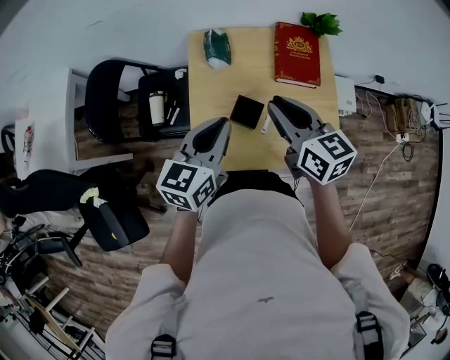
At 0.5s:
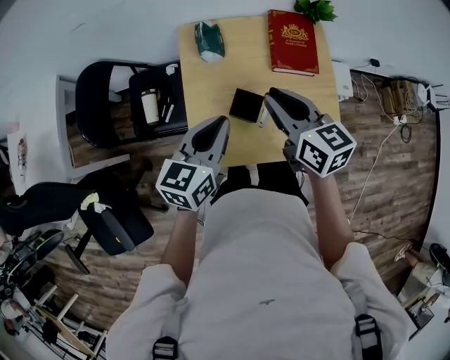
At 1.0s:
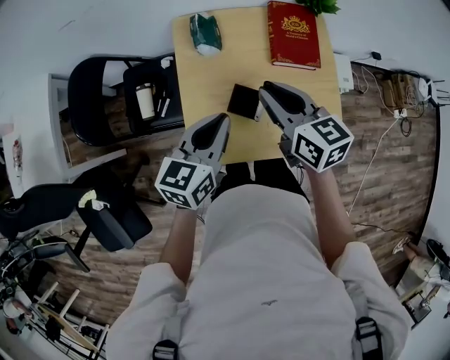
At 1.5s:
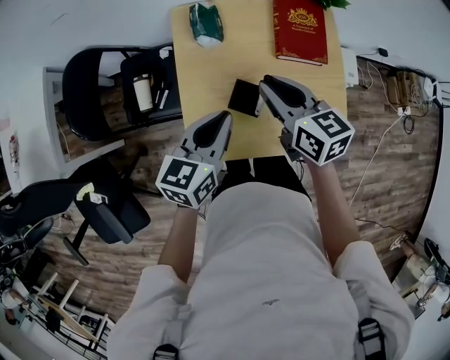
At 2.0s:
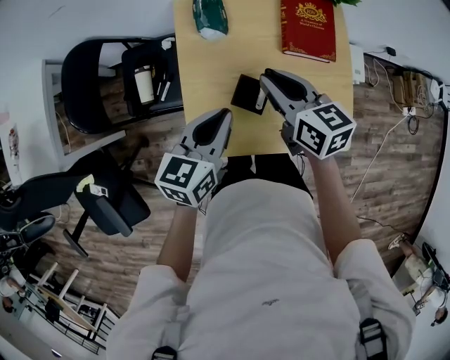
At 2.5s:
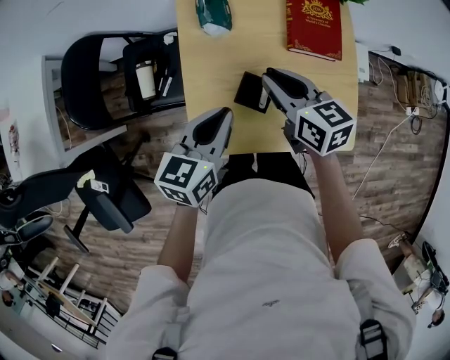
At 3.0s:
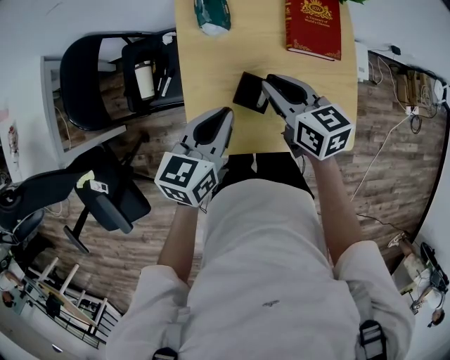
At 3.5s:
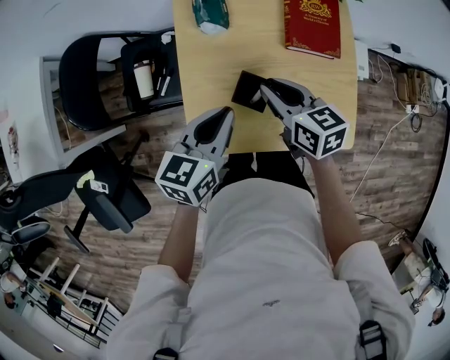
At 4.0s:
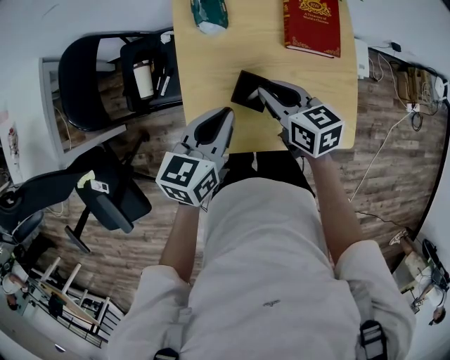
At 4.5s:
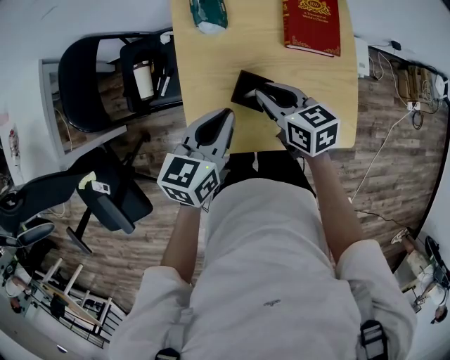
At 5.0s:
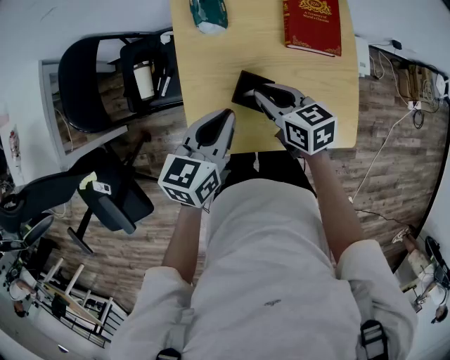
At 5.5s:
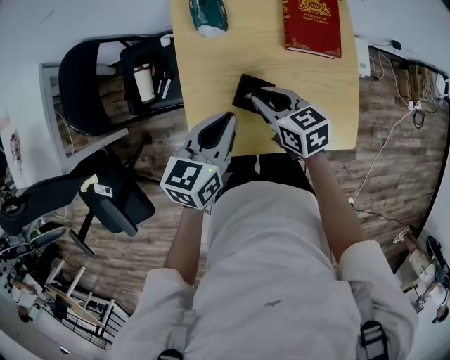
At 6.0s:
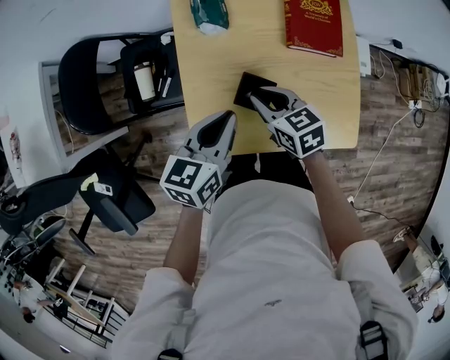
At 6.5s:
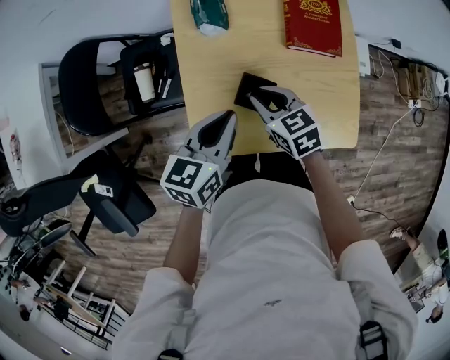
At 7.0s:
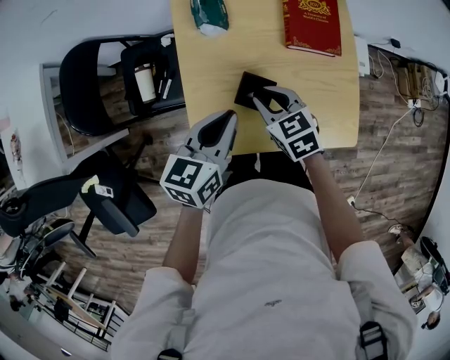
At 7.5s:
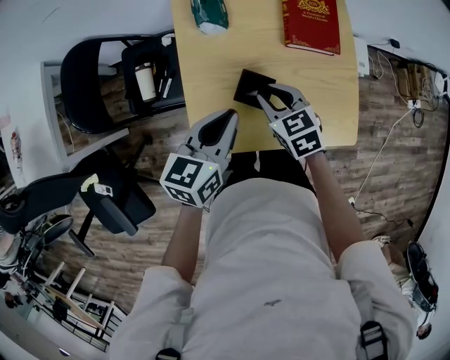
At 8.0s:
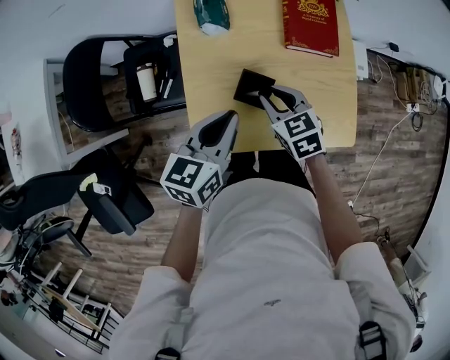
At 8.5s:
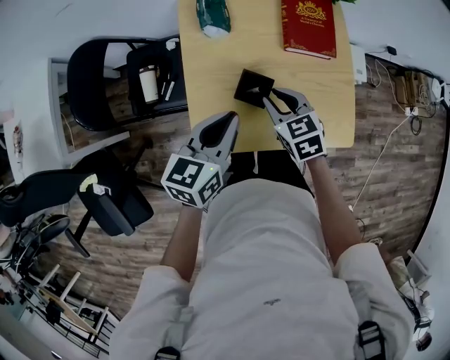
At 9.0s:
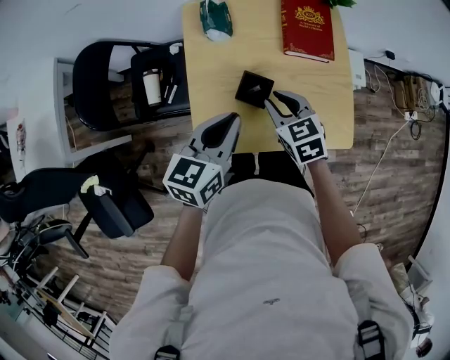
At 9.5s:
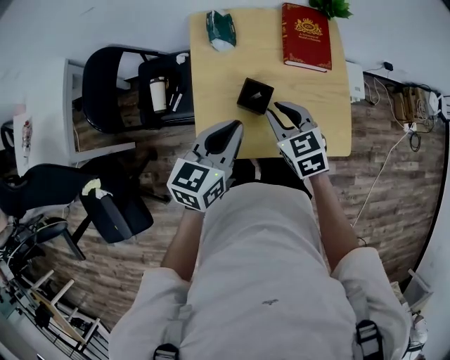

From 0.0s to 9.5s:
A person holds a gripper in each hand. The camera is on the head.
From 0.0s to 2.0s: The right gripper moves downward and forward, roughly 10 cm. The left gripper shifts roughly 10 cm downward.
From 2.0s to 4.0s: The right gripper shifts roughly 5 cm downward.
From 4.0s to 5.5s: The grippers make only small movements.
From 5.5s to 7.5s: There are only small adjustments of the grippers.
From 7.5s to 9.5s: The right gripper moves upward, about 5 cm. Meanwhile the left gripper ends up approximately 5 cm from where it was.

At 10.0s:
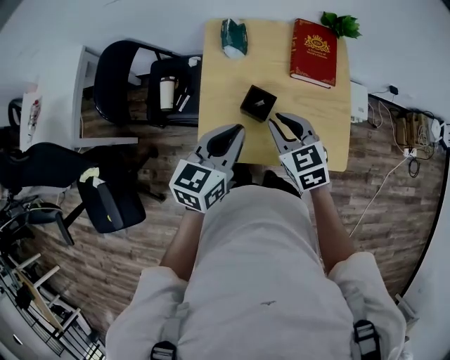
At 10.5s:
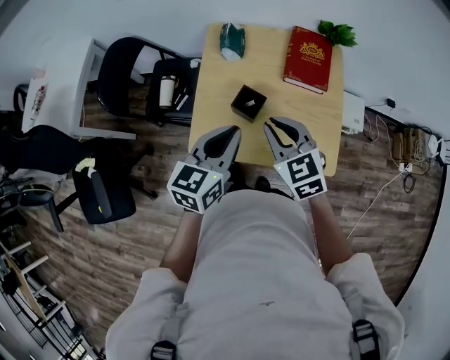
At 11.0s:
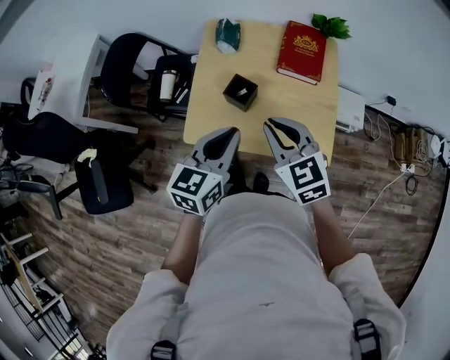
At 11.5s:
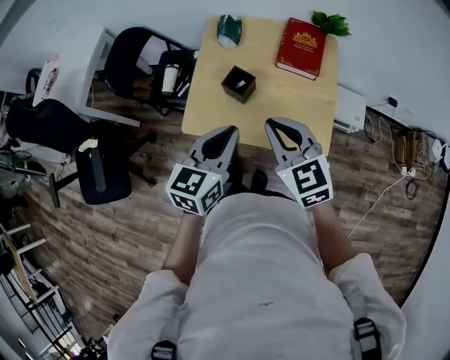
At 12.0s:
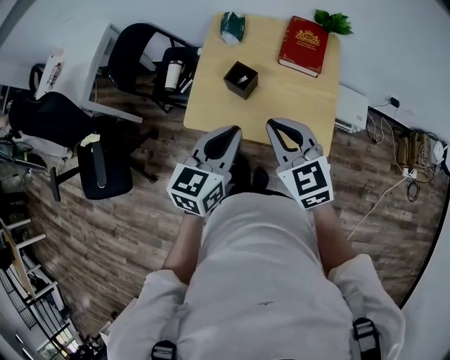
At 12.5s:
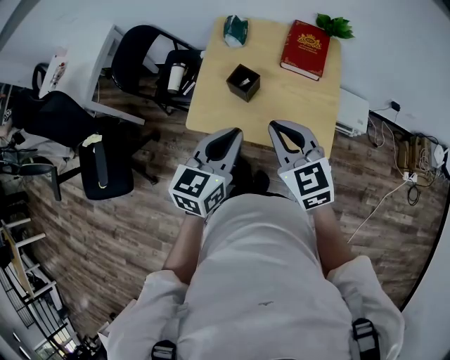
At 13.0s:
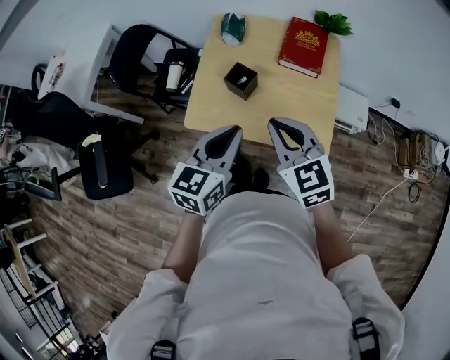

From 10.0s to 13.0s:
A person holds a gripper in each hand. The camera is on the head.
From 10.0s to 11.5s: The left gripper is displaced backward and to the right by some 15 cm. The right gripper shifts roughly 15 cm backward, upward and to the right.
From 11.5s to 13.0s: The grippers move only a little.

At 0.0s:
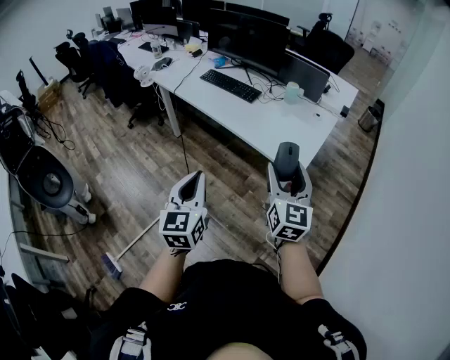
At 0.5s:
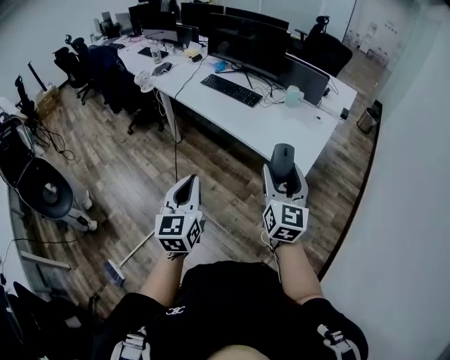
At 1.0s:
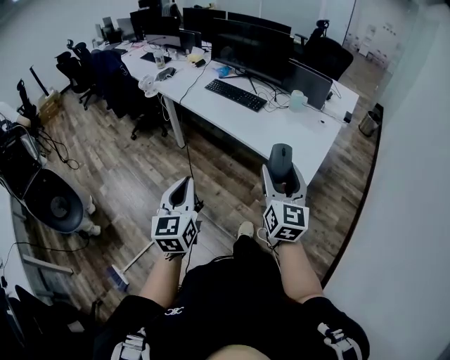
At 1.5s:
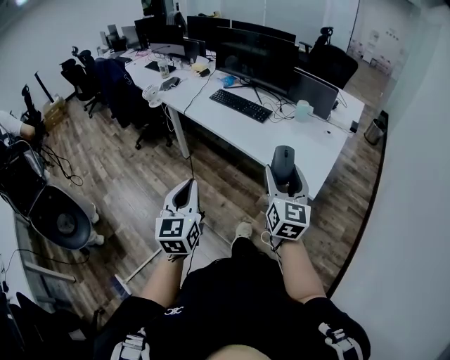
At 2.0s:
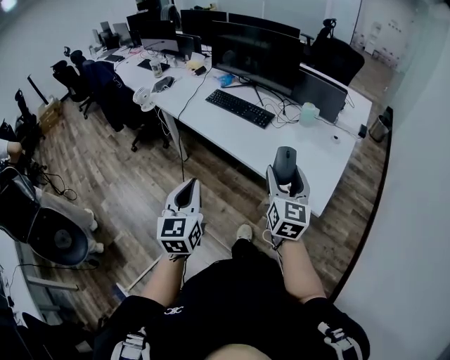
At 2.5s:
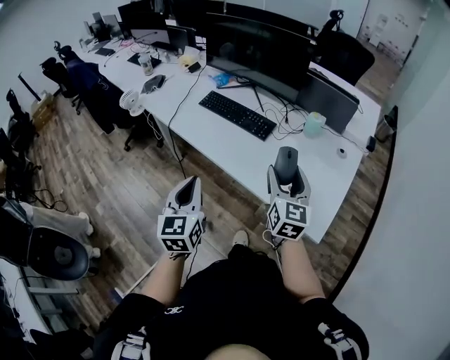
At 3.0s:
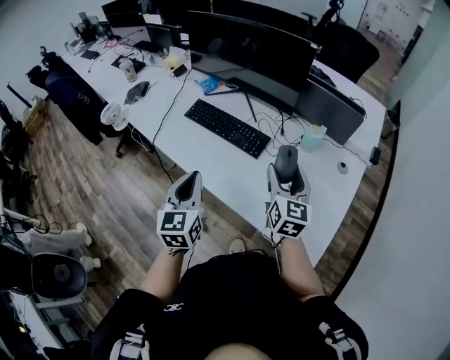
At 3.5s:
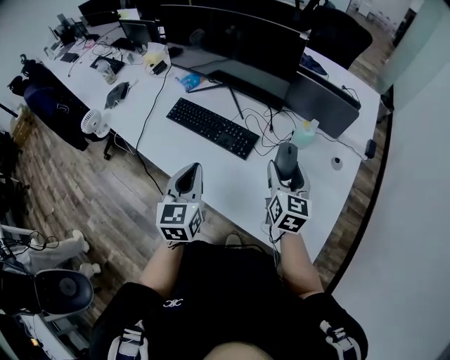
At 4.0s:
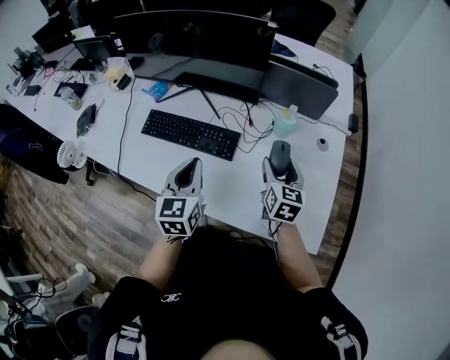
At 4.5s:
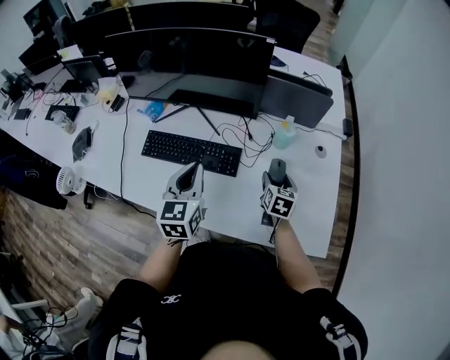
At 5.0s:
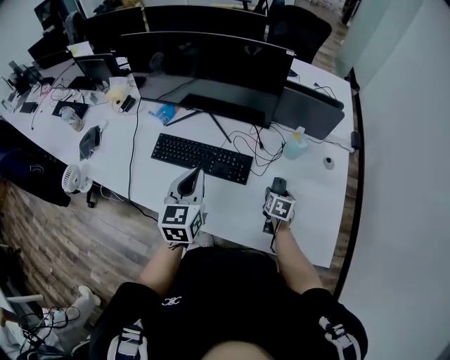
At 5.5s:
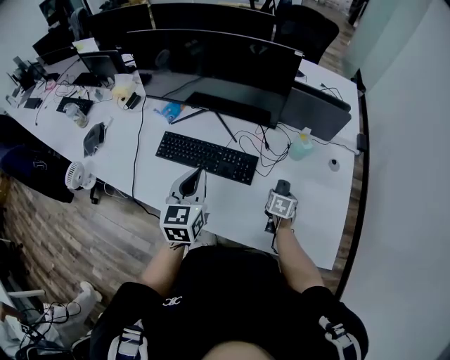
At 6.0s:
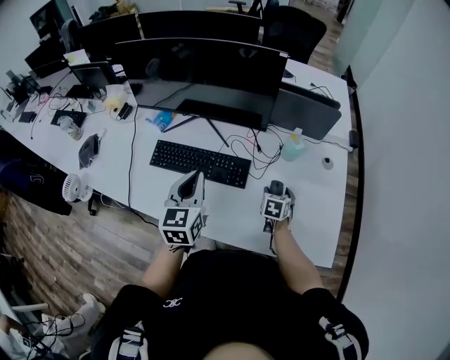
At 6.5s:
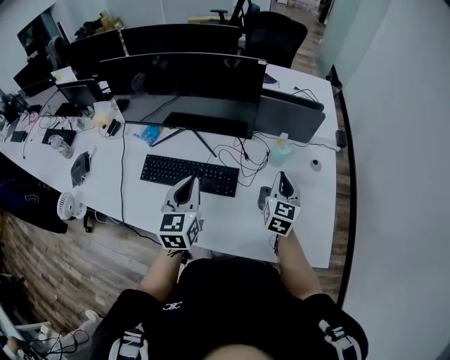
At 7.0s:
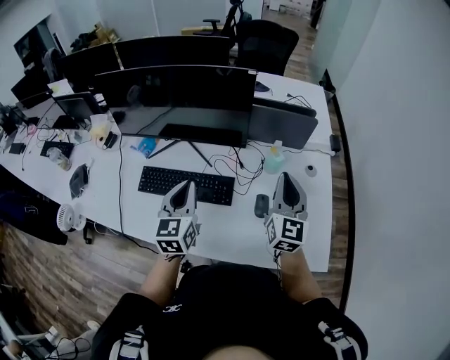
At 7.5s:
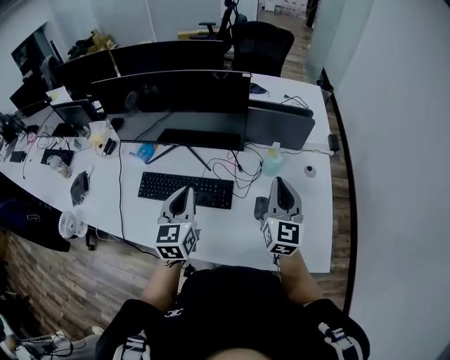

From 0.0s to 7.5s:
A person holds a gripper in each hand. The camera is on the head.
From 0.0s to 2.0s: The left gripper goes roughly 20 cm forward and to the left; the right gripper shifts some 20 cm forward.
From 2.0s to 4.0s: The pair of grippers is taken forward, roughly 50 cm. The left gripper swivels approximately 20 degrees. Meanwhile the right gripper turns by about 30 degrees.
From 4.0s to 5.5s: The left gripper heads to the left, covering roughly 10 cm. The right gripper is displaced downward by about 20 cm, and angles its fingers downward, by some 30 degrees.
From 5.5s to 7.5s: The right gripper moves upward, about 35 cm, points its fingers about 50 degrees further upward, and closes up. The left gripper ends up about 5 cm from where it was.

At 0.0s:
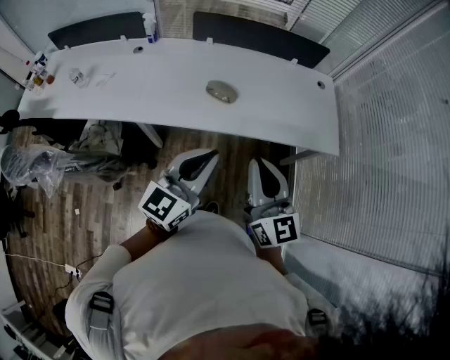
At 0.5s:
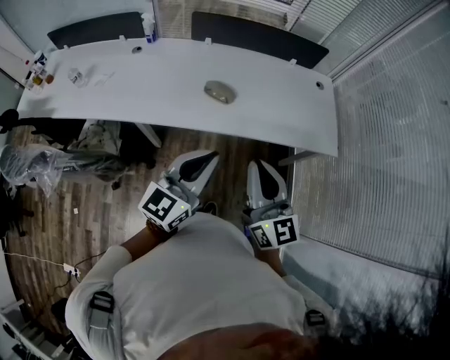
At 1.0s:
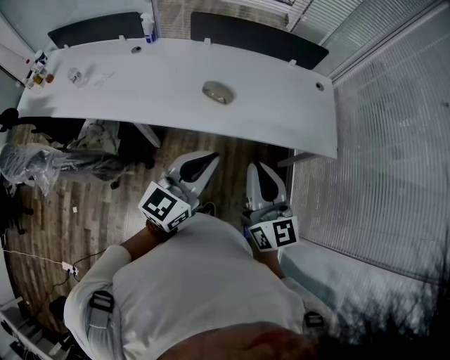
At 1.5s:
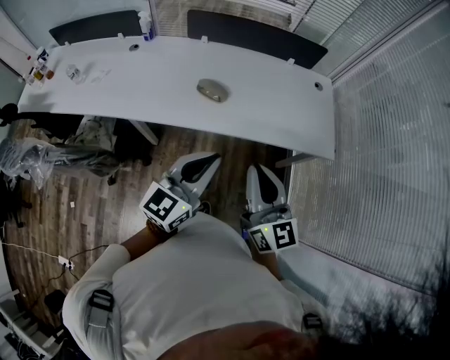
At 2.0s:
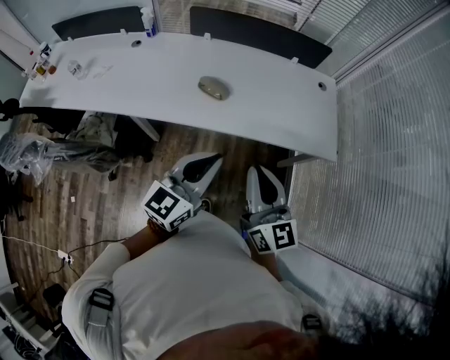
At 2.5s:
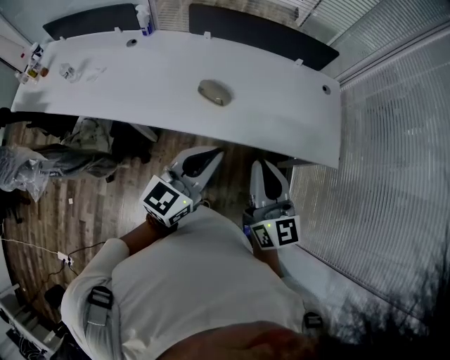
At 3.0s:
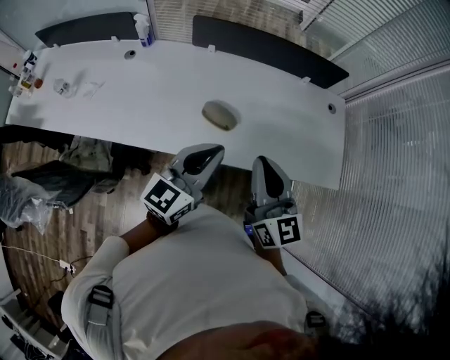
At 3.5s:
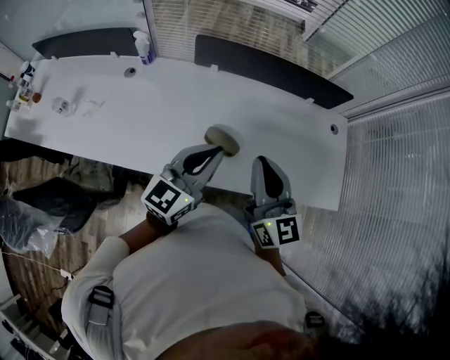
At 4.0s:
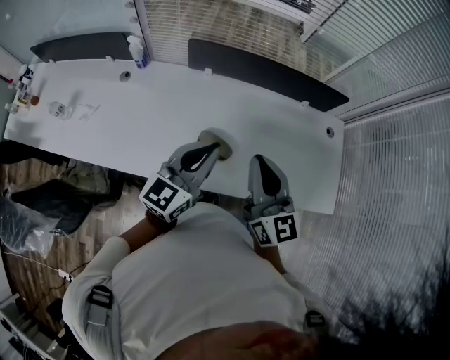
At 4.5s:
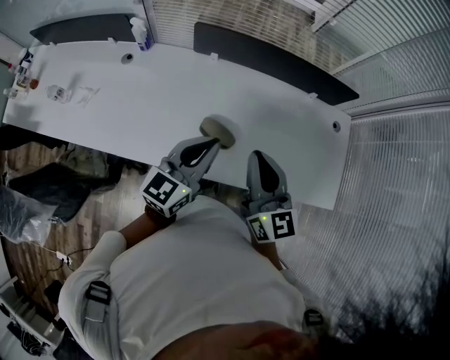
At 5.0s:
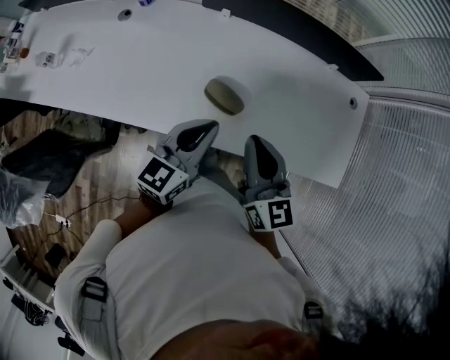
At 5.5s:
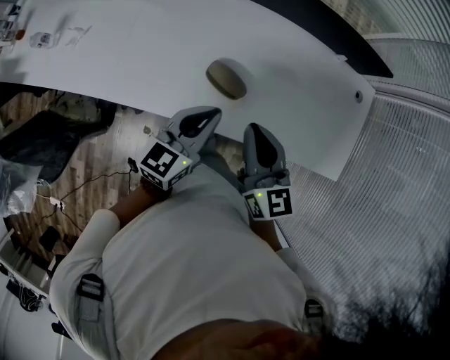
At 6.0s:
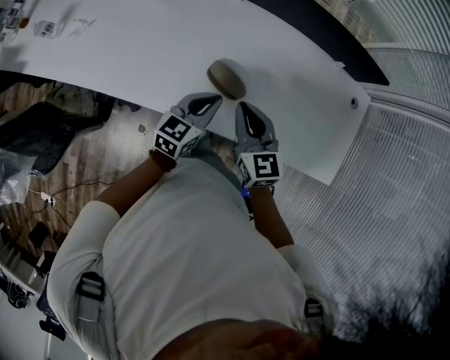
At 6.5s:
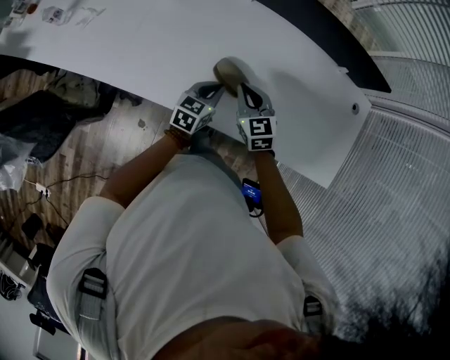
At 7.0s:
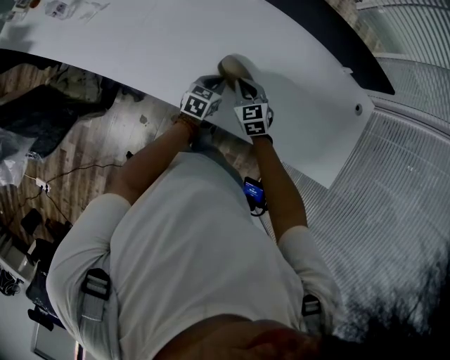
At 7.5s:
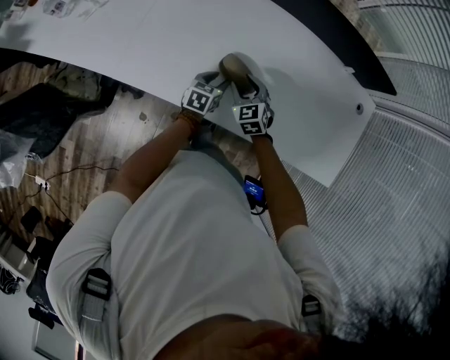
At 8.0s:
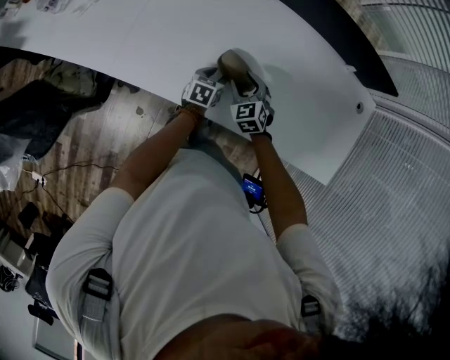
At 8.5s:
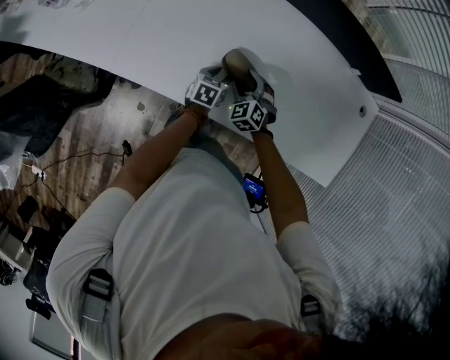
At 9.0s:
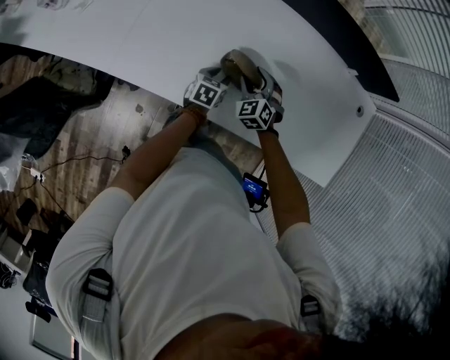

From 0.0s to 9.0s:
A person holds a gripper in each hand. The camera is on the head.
From 0.0s to 2.0s: The grippers both shift to the right by some 10 cm.
From 2.0s to 4.5s: The grippers both shift forward by about 30 cm.
From 4.5s to 7.0s: The two grippers go roughly 35 cm downward. The right gripper tilts its fingers roughly 40 degrees downward. The left gripper tilts its fingers some 30 degrees downward.
From 7.0s to 9.0s: The right gripper moves roughly 5 cm, turns by some 20 degrees, and opens. Meanwhile the left gripper moves downward, some 5 cm, and opens up.
